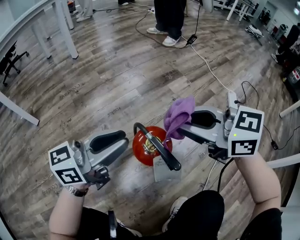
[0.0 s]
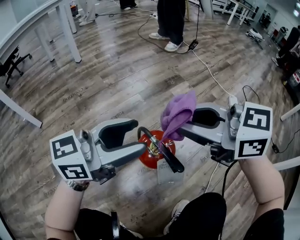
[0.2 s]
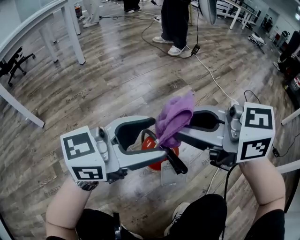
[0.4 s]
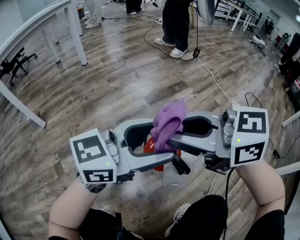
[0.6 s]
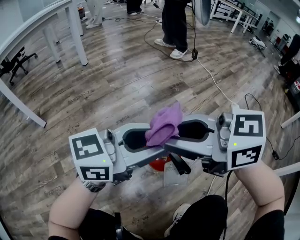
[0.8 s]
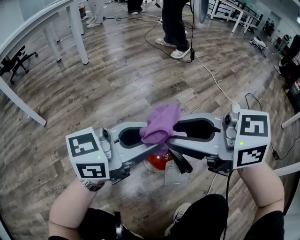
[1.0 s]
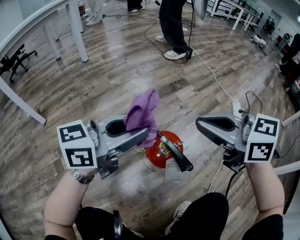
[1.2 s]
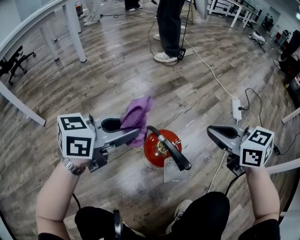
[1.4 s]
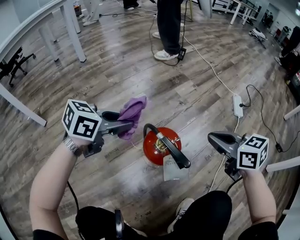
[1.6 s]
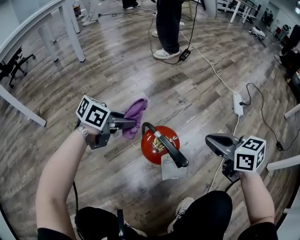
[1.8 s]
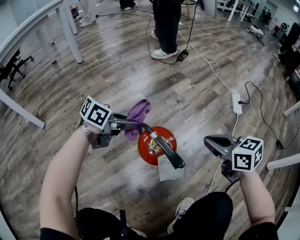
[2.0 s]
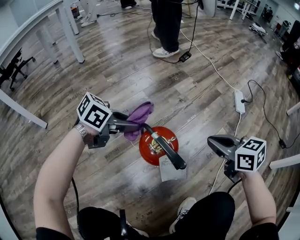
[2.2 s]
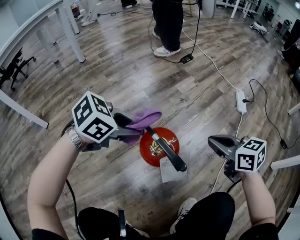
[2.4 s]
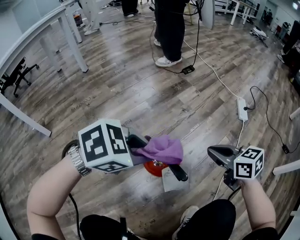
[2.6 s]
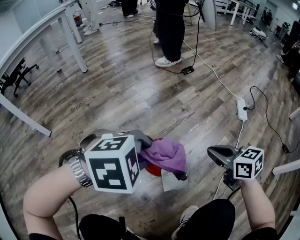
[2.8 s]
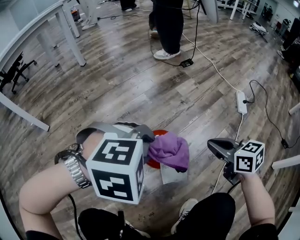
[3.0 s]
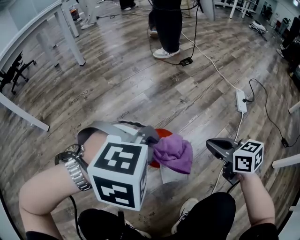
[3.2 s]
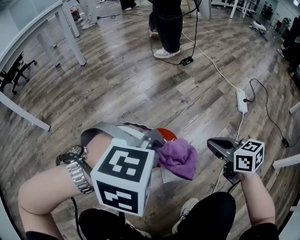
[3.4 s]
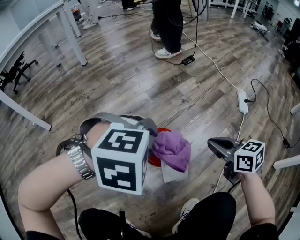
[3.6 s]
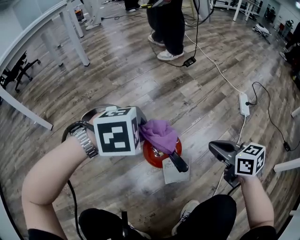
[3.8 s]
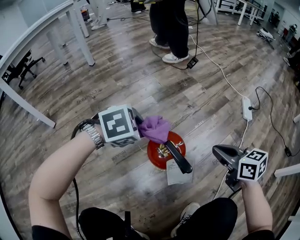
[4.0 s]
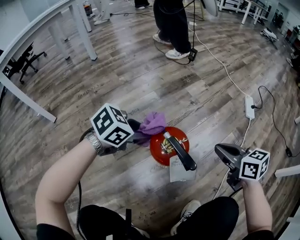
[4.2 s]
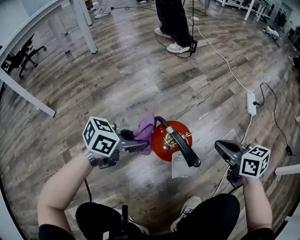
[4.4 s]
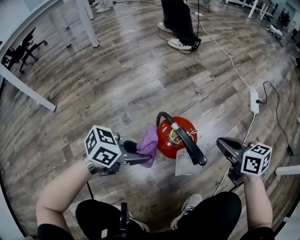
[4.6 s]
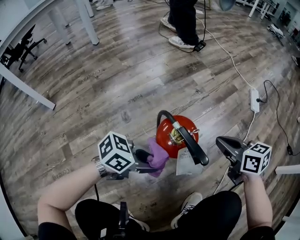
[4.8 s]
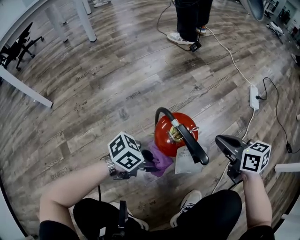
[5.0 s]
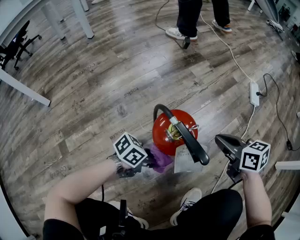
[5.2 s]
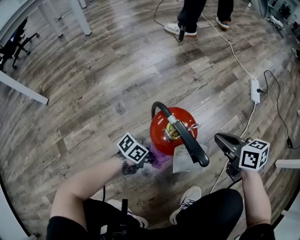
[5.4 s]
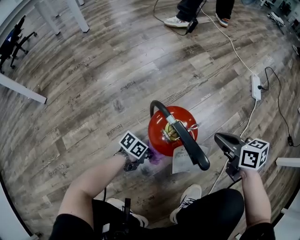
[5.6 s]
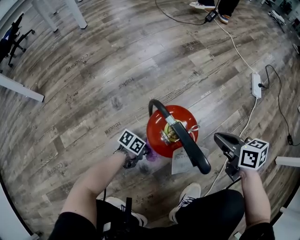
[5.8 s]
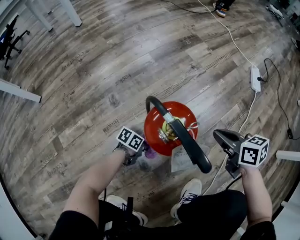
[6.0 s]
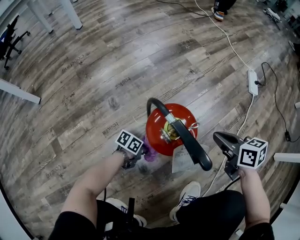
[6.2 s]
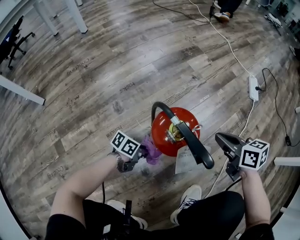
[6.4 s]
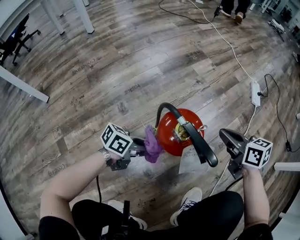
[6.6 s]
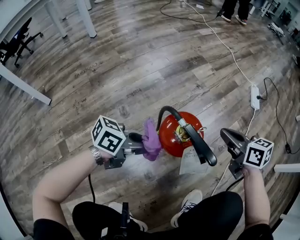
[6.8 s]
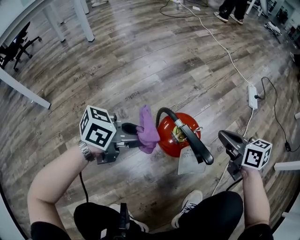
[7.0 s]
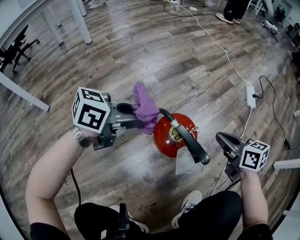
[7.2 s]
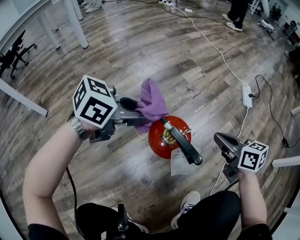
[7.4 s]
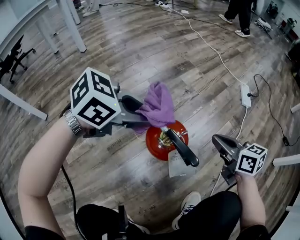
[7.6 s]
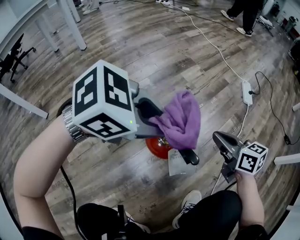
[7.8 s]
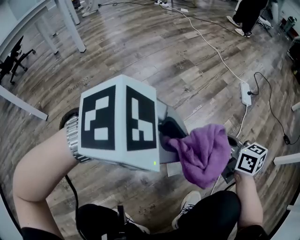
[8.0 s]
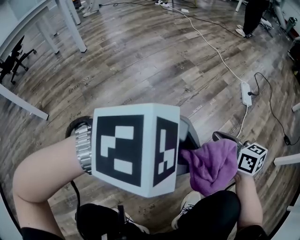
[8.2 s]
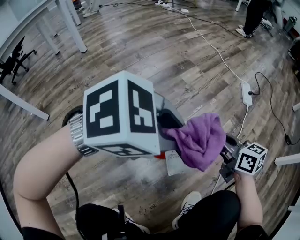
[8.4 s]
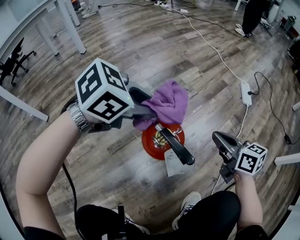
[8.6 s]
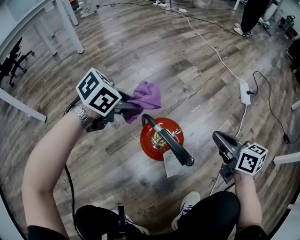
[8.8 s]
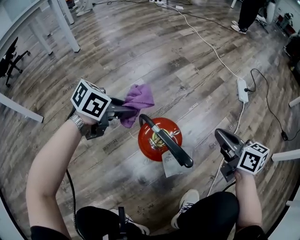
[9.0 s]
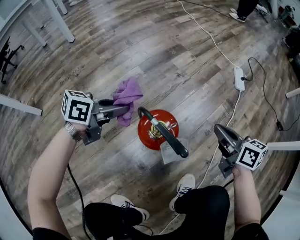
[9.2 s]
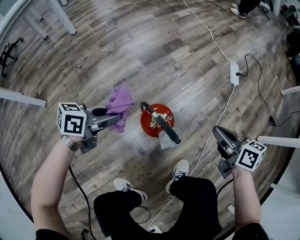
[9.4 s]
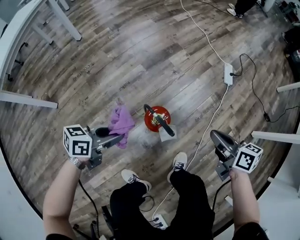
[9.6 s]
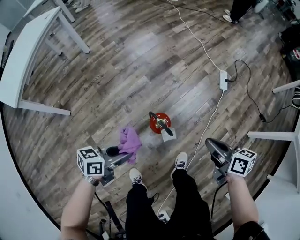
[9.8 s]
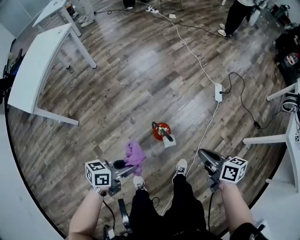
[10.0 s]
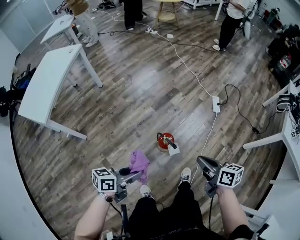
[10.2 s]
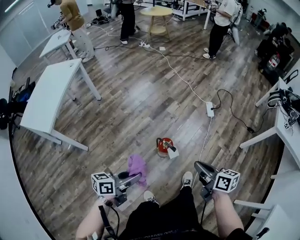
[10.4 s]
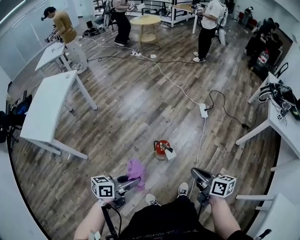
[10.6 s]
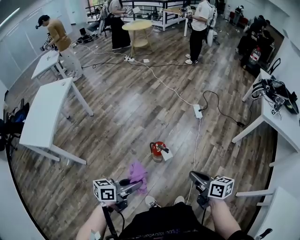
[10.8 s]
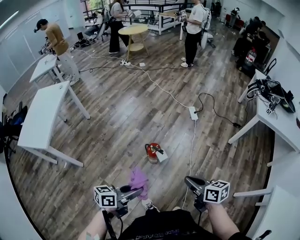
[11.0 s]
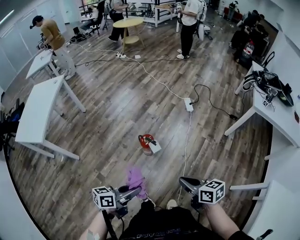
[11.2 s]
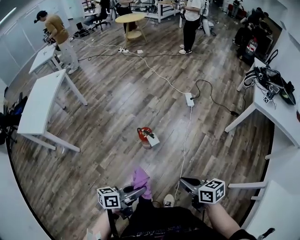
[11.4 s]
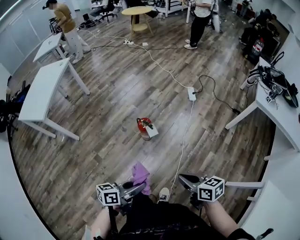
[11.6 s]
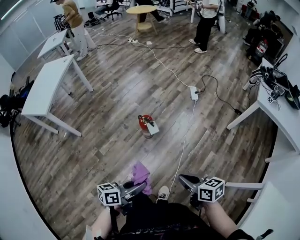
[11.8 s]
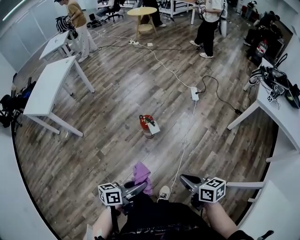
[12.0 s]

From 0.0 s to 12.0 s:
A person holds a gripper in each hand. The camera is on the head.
From 0.0 s to 1.6 s: The right gripper moves roughly 15 cm, and changes its angle by approximately 30 degrees; the left gripper goes about 5 cm downward, angles its fingers downward, by some 30 degrees, and opens, then closes once more.
From 1.6 s to 3.0 s: The right gripper is displaced downward by some 5 cm. Meanwhile the left gripper moves some 10 cm downward and comes back, and rotates around the line of its fingers by roughly 60 degrees, clockwise from behind.
From 3.0 s to 4.4 s: The left gripper travels downward and to the left by some 15 cm, and twists about 60 degrees counterclockwise, seen from behind.
From 4.4 s to 6.0 s: The left gripper travels downward by approximately 30 cm, and turns by approximately 40 degrees. Meanwhile the right gripper goes roughly 10 cm downward.
From 6.0 s to 7.6 s: The left gripper is displaced upward by about 40 cm, and rotates around the line of its fingers by about 50 degrees, clockwise from behind; the right gripper goes some 10 cm upward.
From 7.6 s to 9.0 s: The left gripper moves downward, about 10 cm, and rotates roughly 20 degrees.
From 9.0 s to 10.4 s: Both grippers move upward and backward, some 60 cm. The left gripper changes its angle by approximately 30 degrees.
From 10.4 s to 12.0 s: Both grippers move backward and to the right, roughly 30 cm.

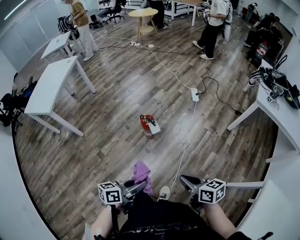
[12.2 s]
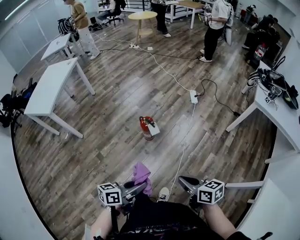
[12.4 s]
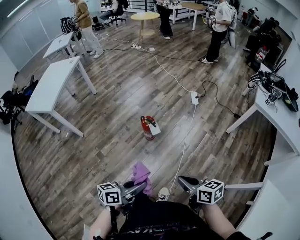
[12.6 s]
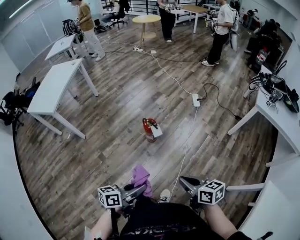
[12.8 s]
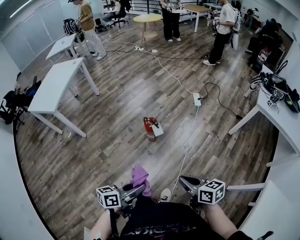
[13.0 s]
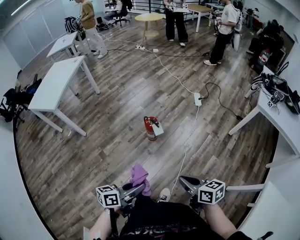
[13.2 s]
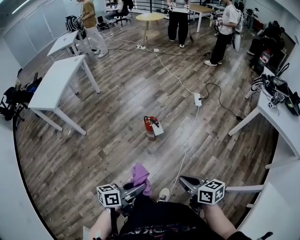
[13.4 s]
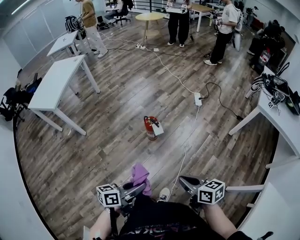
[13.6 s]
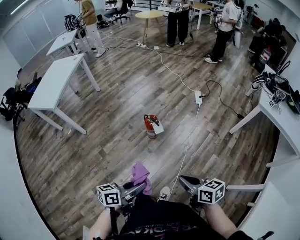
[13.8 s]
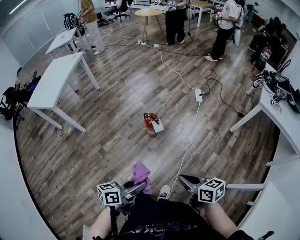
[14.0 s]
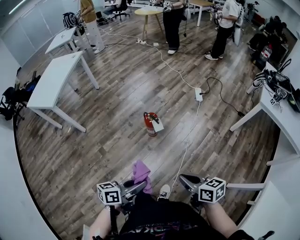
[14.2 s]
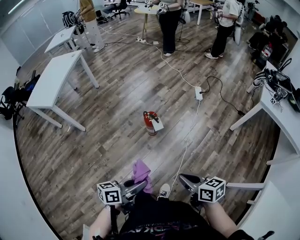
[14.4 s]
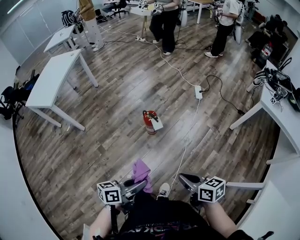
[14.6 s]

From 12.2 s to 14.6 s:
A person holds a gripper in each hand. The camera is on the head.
From 12.2 s to 14.6 s: The grippers make only small movements.

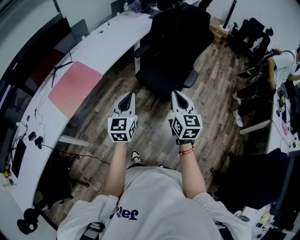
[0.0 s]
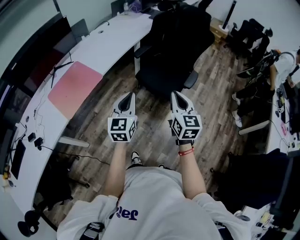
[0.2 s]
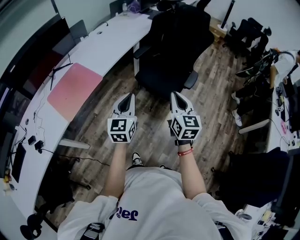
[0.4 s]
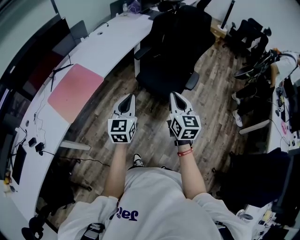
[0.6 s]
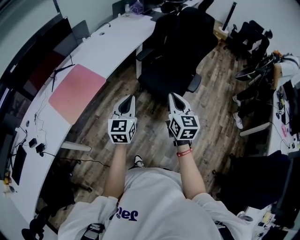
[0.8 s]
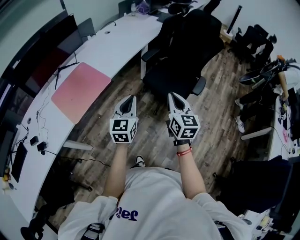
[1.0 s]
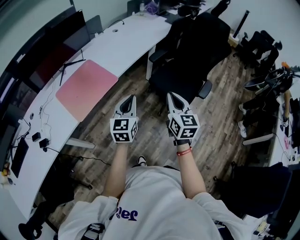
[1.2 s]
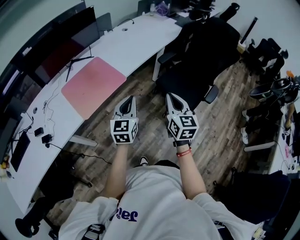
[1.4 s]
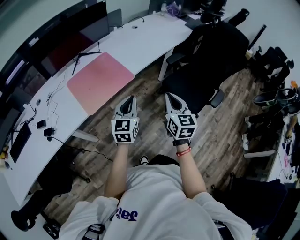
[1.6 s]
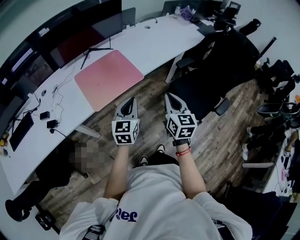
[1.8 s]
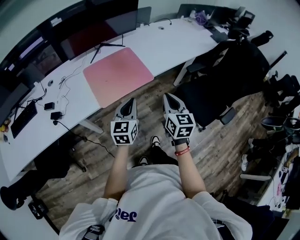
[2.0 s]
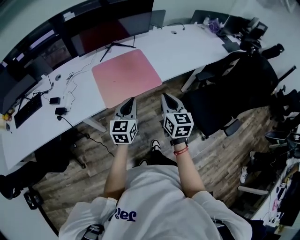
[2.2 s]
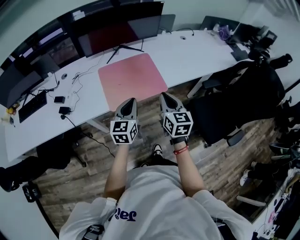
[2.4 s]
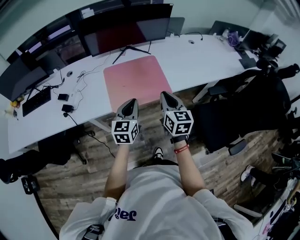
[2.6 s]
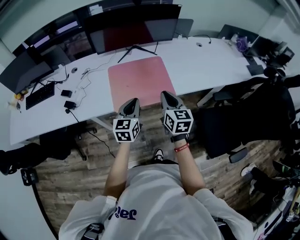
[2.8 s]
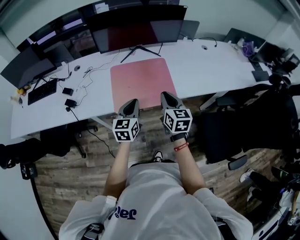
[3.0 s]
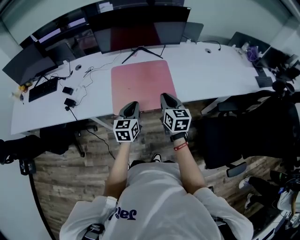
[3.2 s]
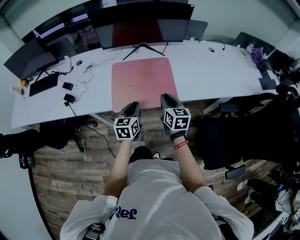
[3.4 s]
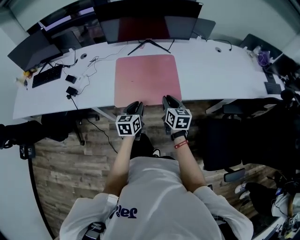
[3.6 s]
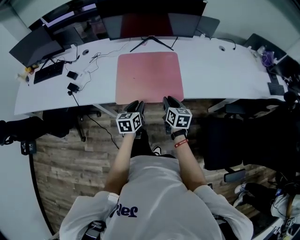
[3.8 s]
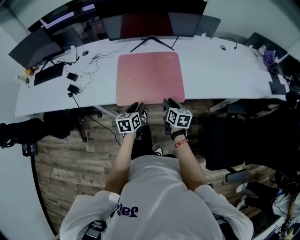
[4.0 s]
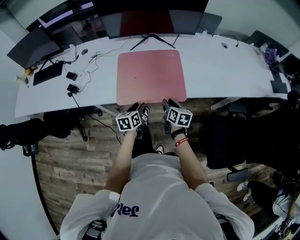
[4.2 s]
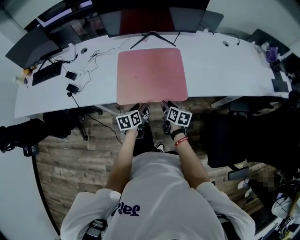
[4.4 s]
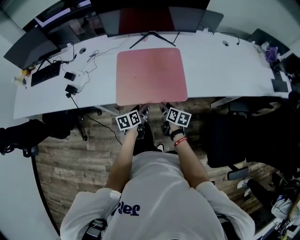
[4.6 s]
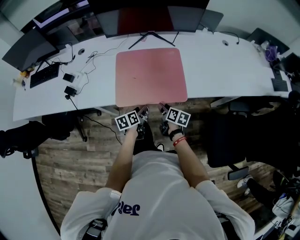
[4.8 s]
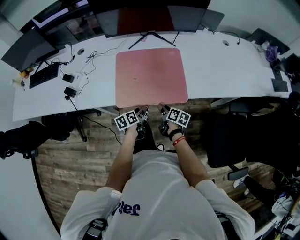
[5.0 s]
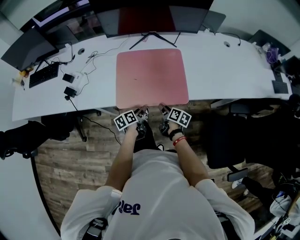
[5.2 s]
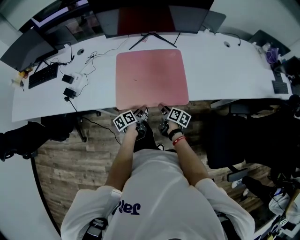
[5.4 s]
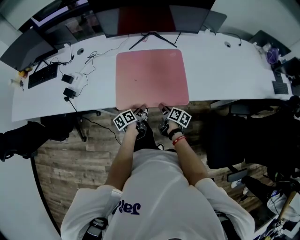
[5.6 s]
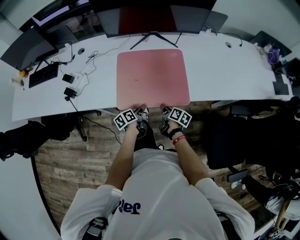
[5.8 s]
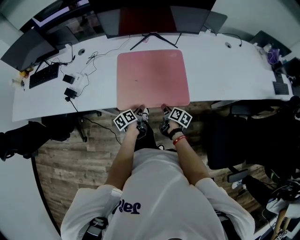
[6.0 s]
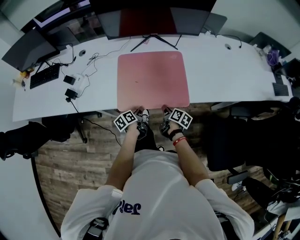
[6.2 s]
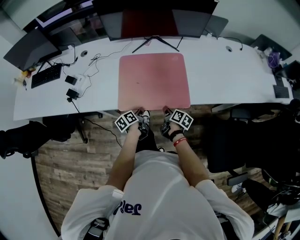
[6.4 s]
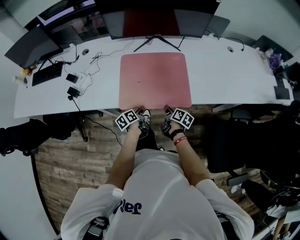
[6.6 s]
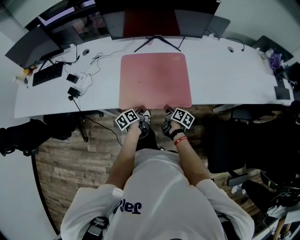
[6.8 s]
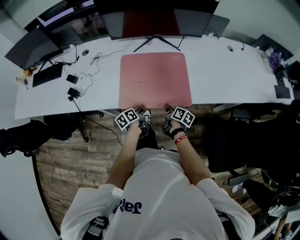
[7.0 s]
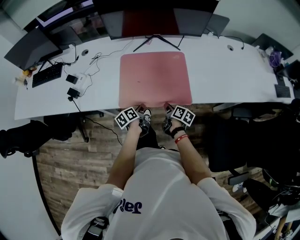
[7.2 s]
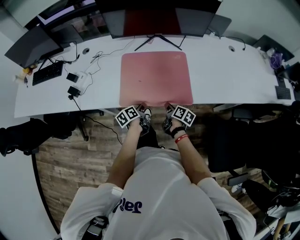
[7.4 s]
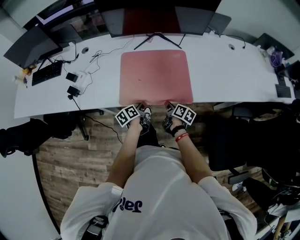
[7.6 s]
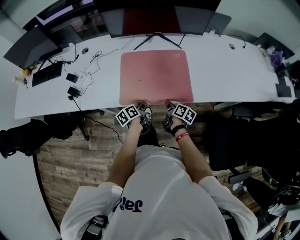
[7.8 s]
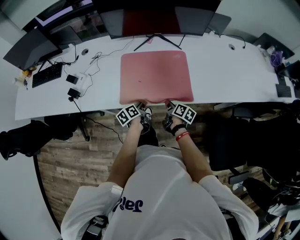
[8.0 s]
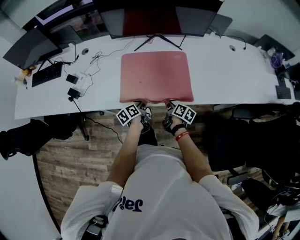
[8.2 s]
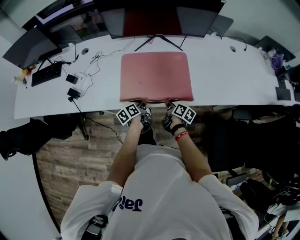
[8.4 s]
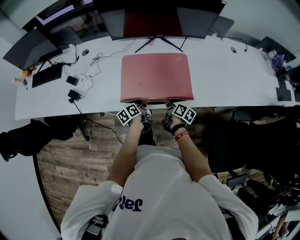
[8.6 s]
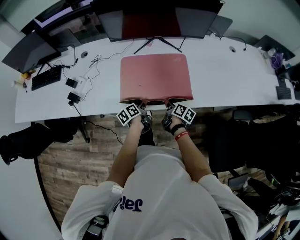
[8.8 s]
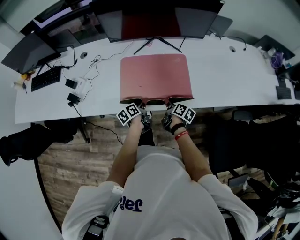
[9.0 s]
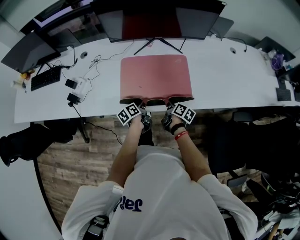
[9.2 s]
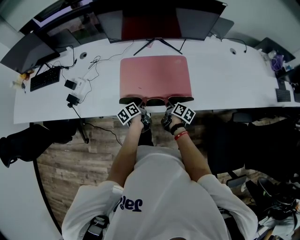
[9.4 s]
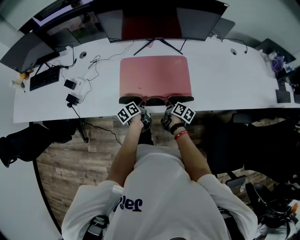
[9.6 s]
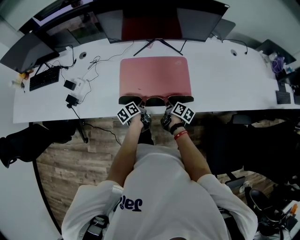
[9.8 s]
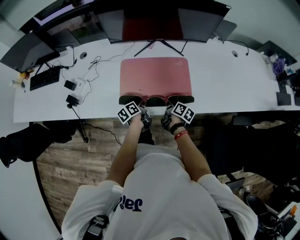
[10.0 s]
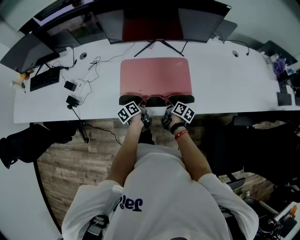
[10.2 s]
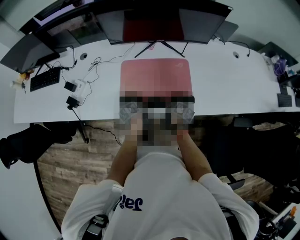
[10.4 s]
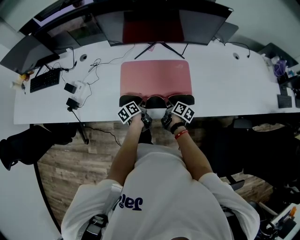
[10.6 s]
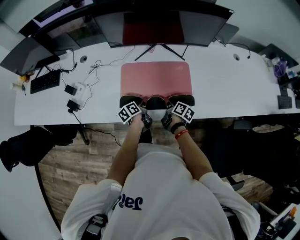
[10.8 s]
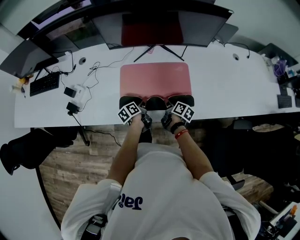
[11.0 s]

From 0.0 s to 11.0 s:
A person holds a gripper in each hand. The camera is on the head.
From 0.0 s to 1.6 s: Both grippers move to the left, roughly 25 cm.
From 1.6 s to 3.2 s: The right gripper ends up approximately 35 cm from where it was, and rotates about 40 degrees; the left gripper moves approximately 25 cm, and changes its angle by roughly 40 degrees.
From 3.2 s to 4.8 s: The two grippers go about 20 cm downward. The right gripper turns by roughly 40 degrees, and opens; the left gripper swivels about 40 degrees, and opens.
From 4.8 s to 6.2 s: The left gripper changes its angle by some 20 degrees, and closes its fingers, while the right gripper closes up.
From 6.2 s to 7.8 s: The grippers stay close to where they were, moving slightly.
From 7.8 s to 9.4 s: The grippers both shift forward by roughly 5 cm.
From 9.4 s to 11.0 s: Both grippers move forward, some 5 cm.
